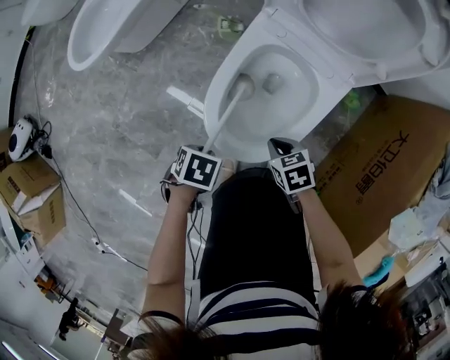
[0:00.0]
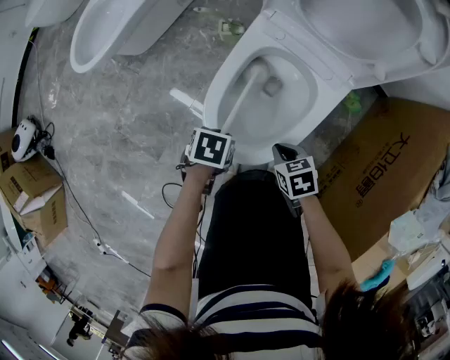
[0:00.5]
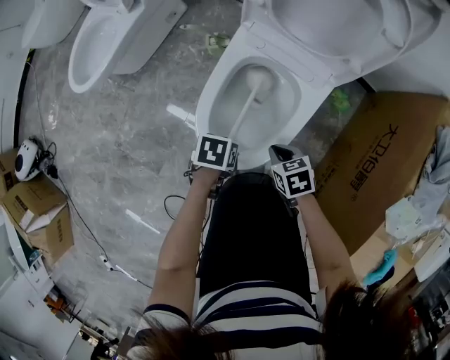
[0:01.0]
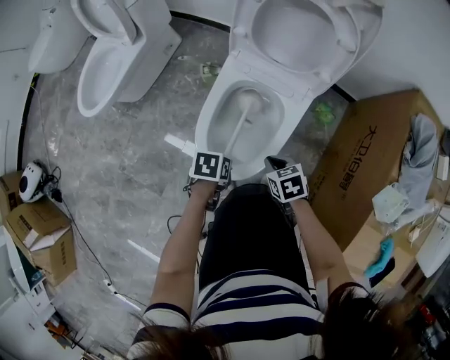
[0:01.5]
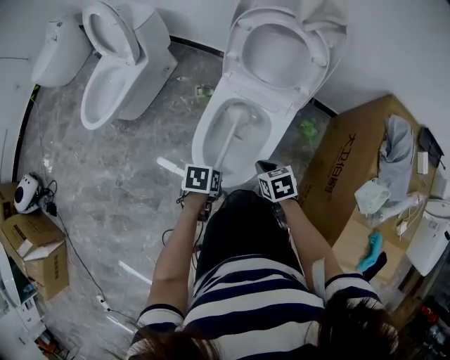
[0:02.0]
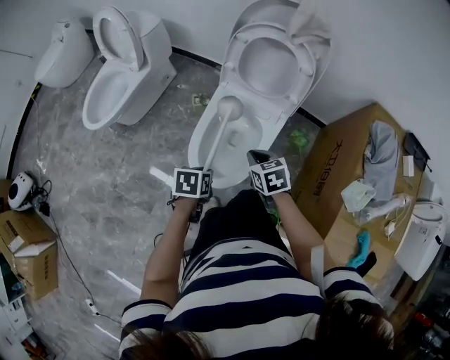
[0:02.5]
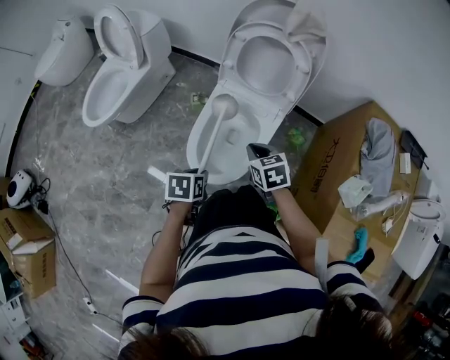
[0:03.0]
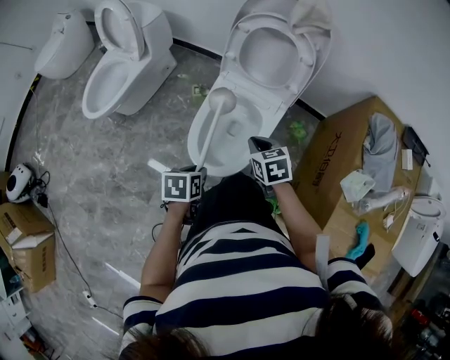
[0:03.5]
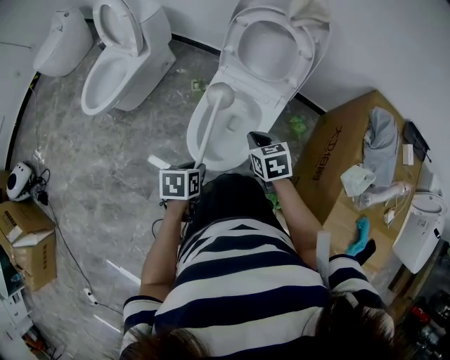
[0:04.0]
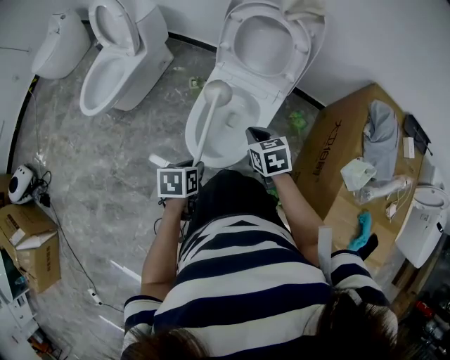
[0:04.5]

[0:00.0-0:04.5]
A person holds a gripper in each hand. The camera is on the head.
0:00.0 to 0:02.0: The right gripper goes roughly 15 cm upward.
0:02.0 to 0:04.5: The right gripper travels upward by approximately 10 cm.

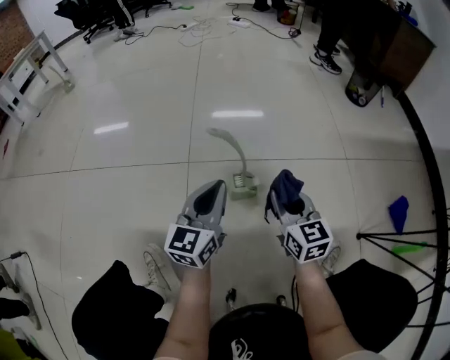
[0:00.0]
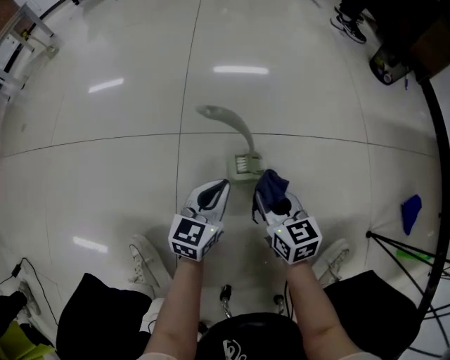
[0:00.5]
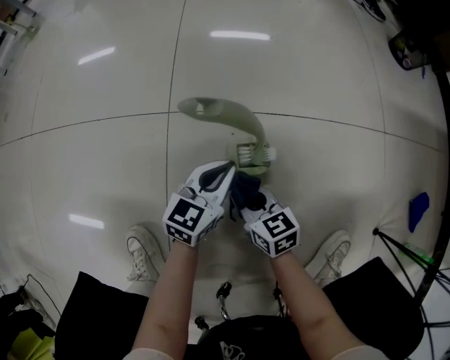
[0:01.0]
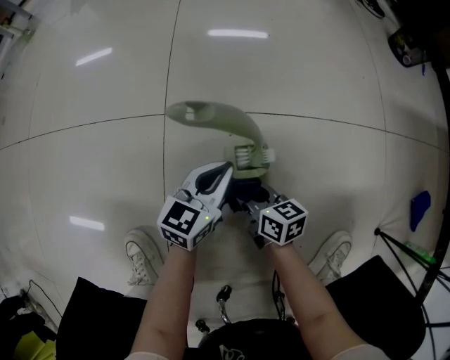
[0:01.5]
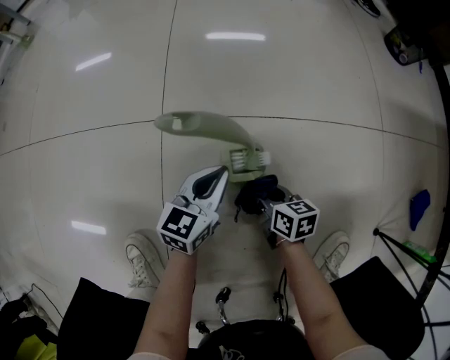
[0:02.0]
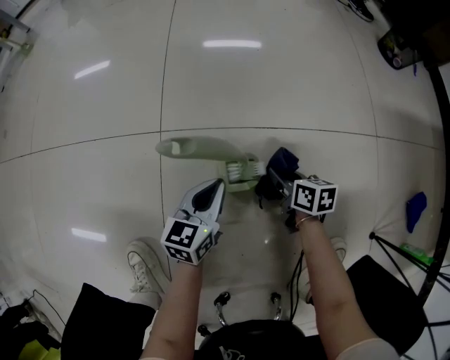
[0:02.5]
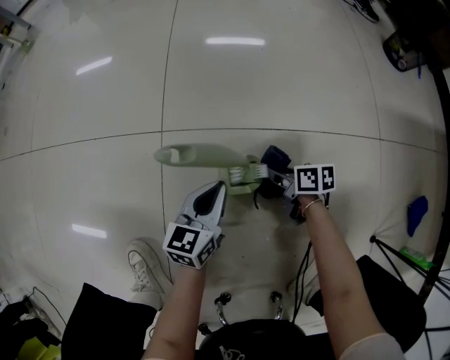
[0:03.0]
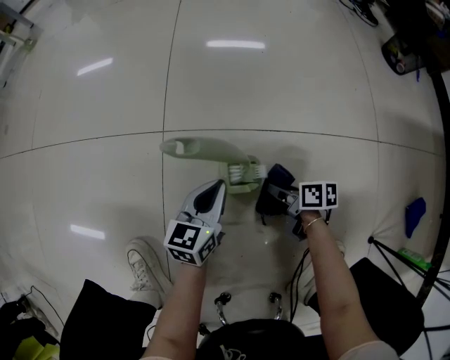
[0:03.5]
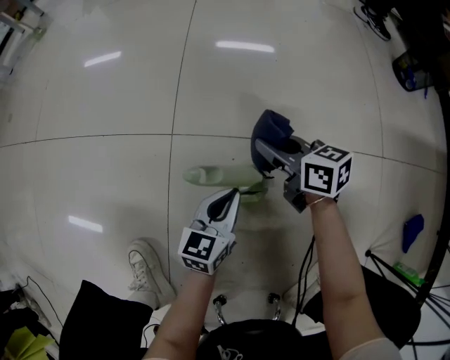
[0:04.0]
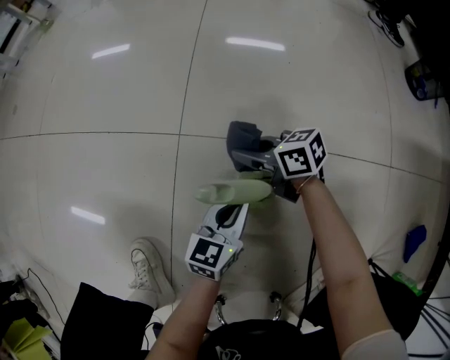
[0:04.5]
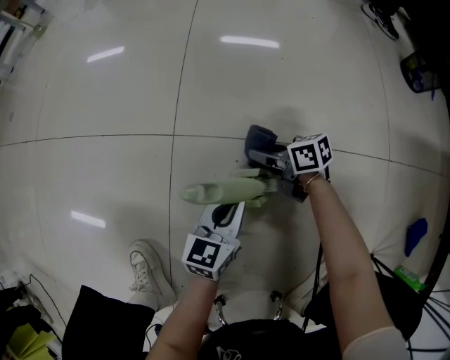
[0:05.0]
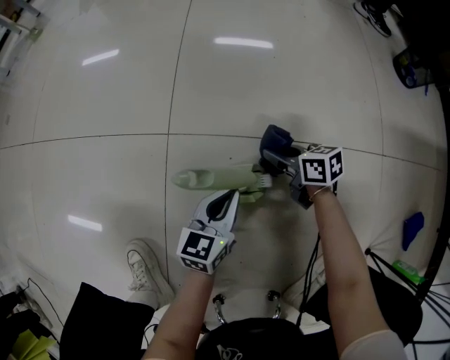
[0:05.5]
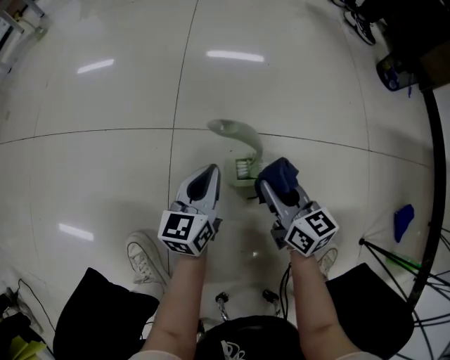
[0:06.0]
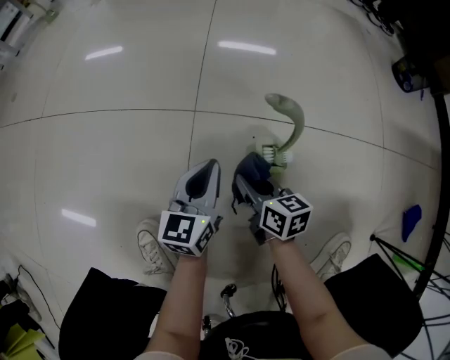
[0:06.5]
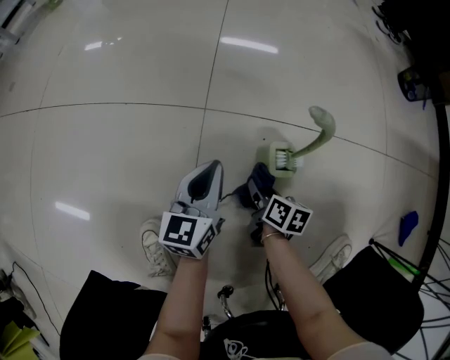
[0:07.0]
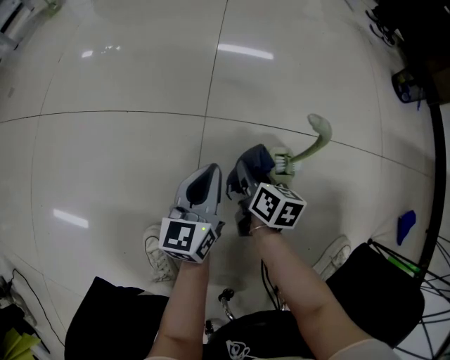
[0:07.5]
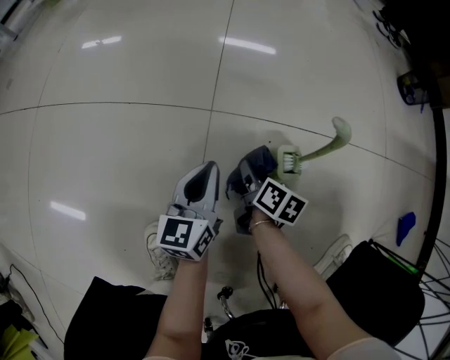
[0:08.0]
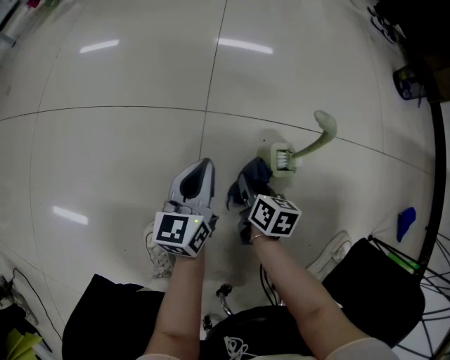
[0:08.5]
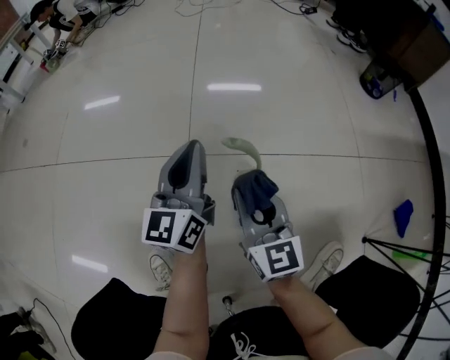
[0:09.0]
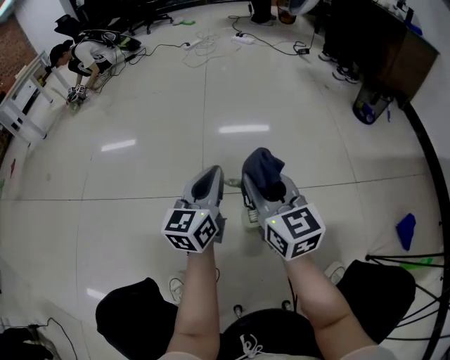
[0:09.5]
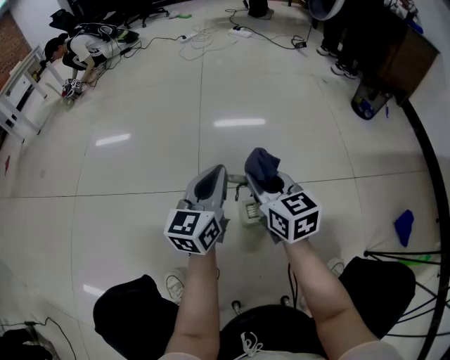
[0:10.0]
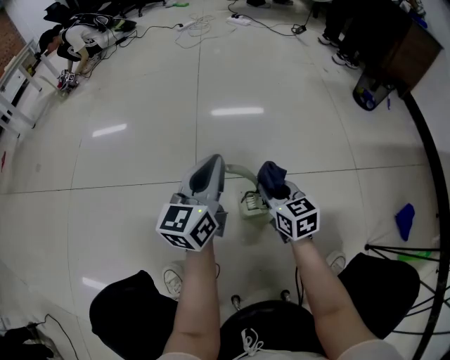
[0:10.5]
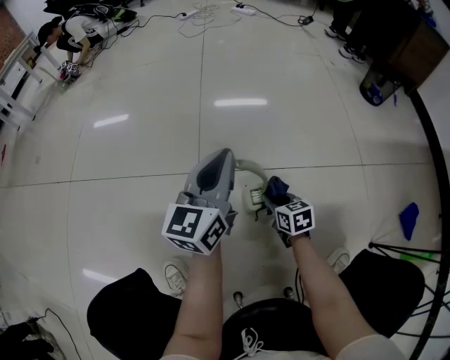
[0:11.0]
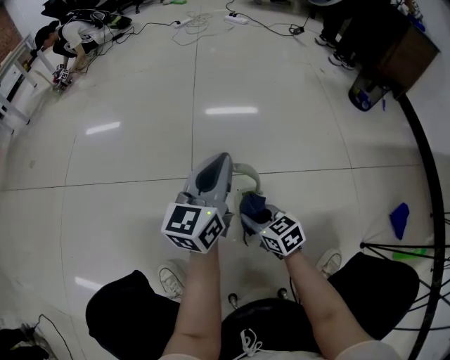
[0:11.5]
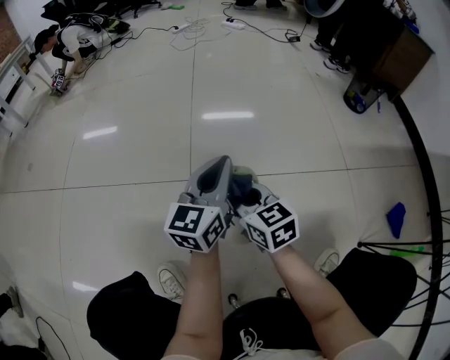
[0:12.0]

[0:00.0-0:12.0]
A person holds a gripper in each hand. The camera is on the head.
0:00.0 to 0:02.0: Both grippers move downward, approximately 25 cm. The right gripper swivels about 40 degrees, while the left gripper turns by some 20 degrees.
0:02.0 to 0:04.0: The right gripper goes forward and backward, roughly 15 cm each way, reversing 2 times, and turns by approximately 20 degrees.
0:04.0 to 0:06.0: The left gripper moves to the left and upward, about 5 cm. The right gripper shifts some 15 cm backward.
0:06.0 to 0:08.0: The right gripper travels to the left and downward by roughly 20 cm, and swivels approximately 40 degrees, while the left gripper goes approximately 15 cm to the left.
0:08.0 to 0:10.0: The right gripper is displaced upward by approximately 30 cm, and rotates around the line of its fingers by roughly 40 degrees, counterclockwise from behind. The left gripper travels upward and to the right by about 25 cm, and swivels approximately 20 degrees.
0:10.0 to 0:12.0: The right gripper travels to the left by roughly 5 cm, and travels downward and back again, some 25 cm each way.

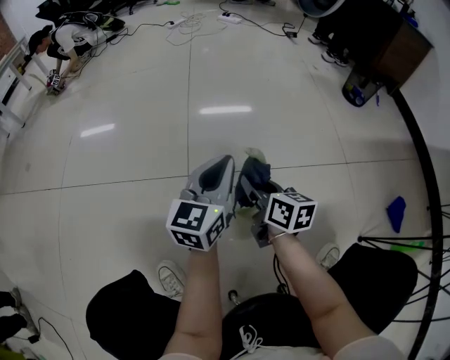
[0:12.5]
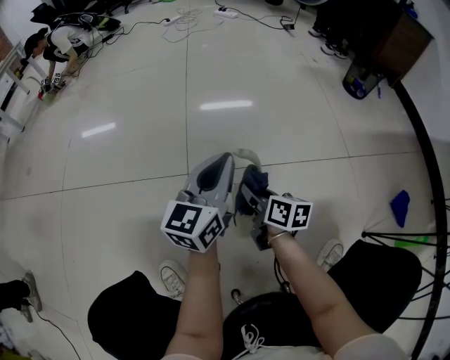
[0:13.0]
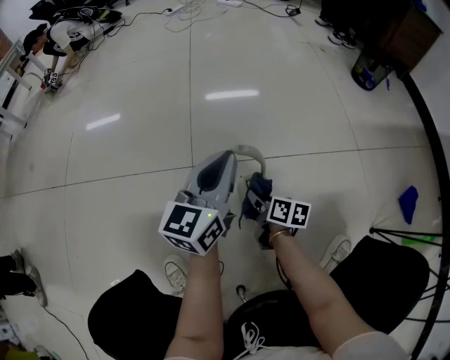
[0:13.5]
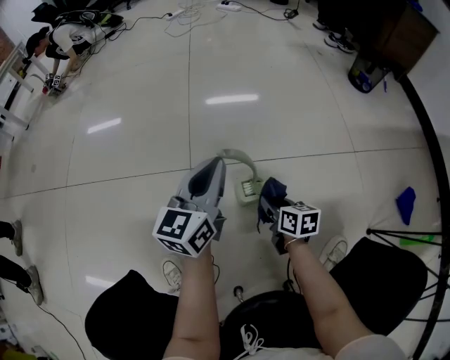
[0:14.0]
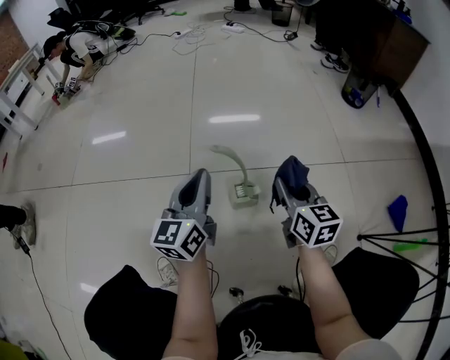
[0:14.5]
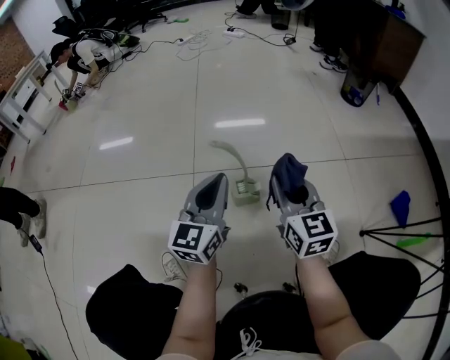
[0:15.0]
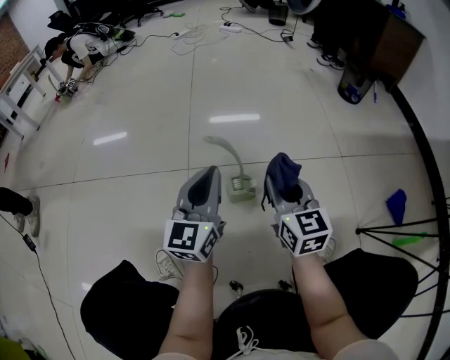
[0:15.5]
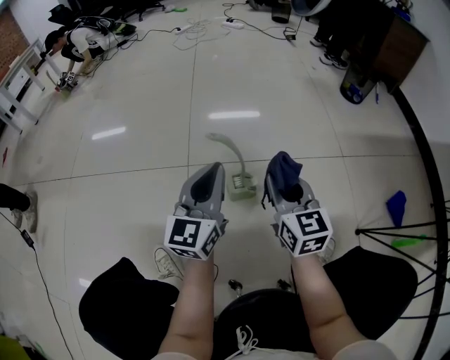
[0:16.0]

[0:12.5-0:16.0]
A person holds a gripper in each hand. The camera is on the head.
0:12.5 to 0:14.5: The right gripper shifts roughly 15 cm to the right and backward, goes downward and returns, some 15 cm each way, and swivels roughly 20 degrees. Meanwhile the left gripper moves backward, approximately 5 cm.
0:14.5 to 0:16.0: The left gripper moves approximately 5 cm; the right gripper ends up some 5 cm from where it was.

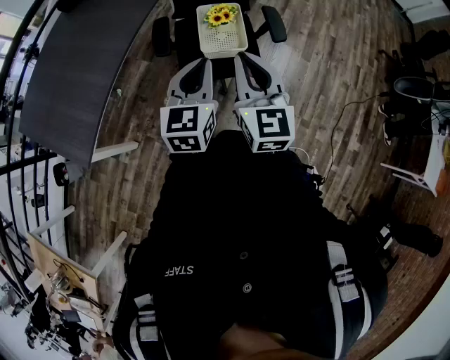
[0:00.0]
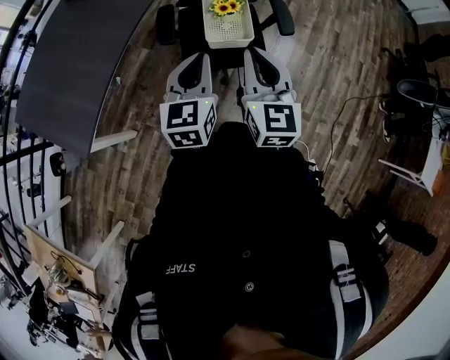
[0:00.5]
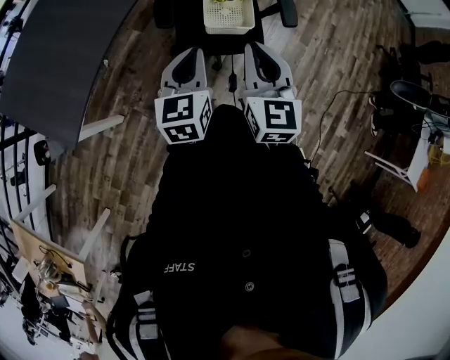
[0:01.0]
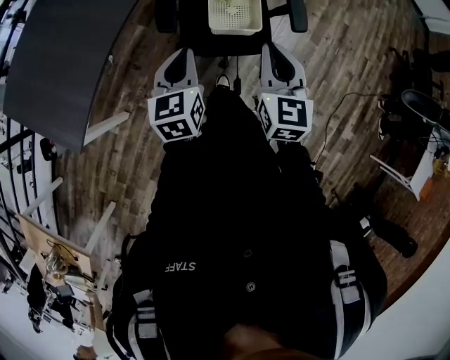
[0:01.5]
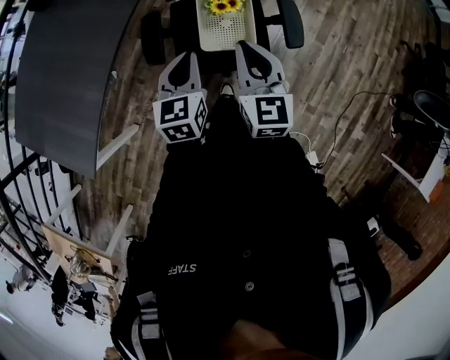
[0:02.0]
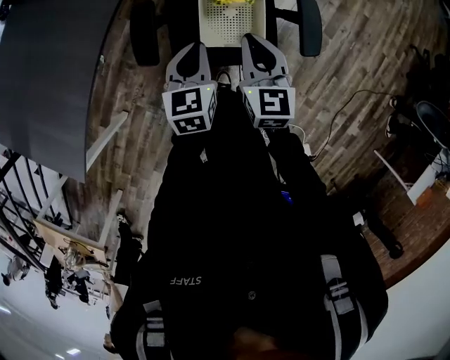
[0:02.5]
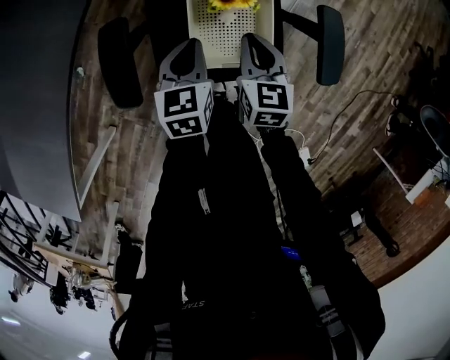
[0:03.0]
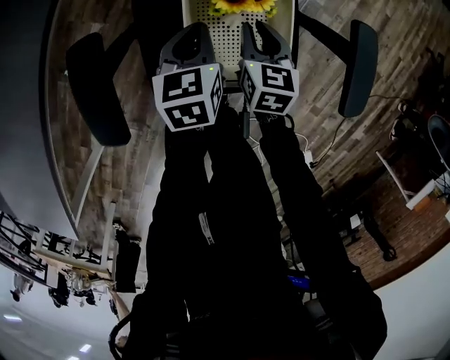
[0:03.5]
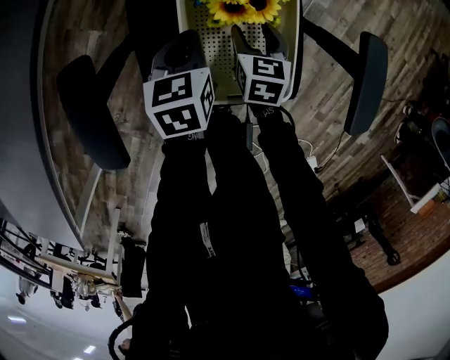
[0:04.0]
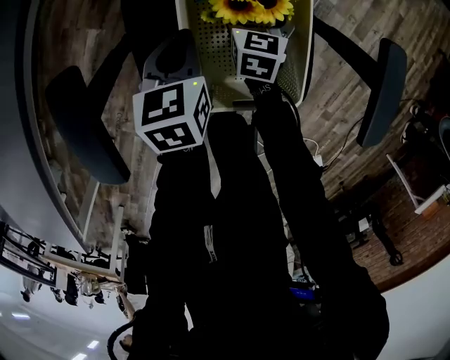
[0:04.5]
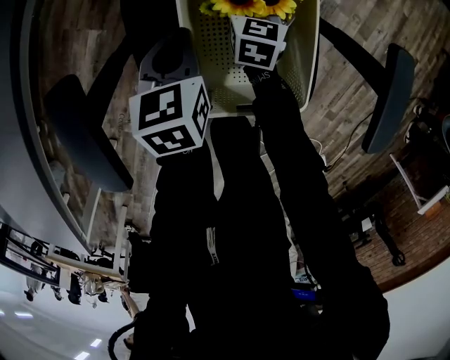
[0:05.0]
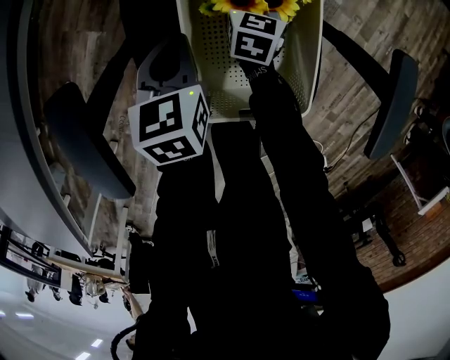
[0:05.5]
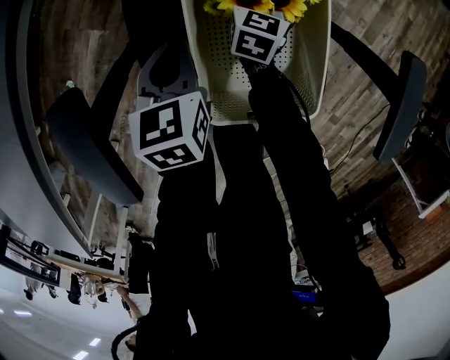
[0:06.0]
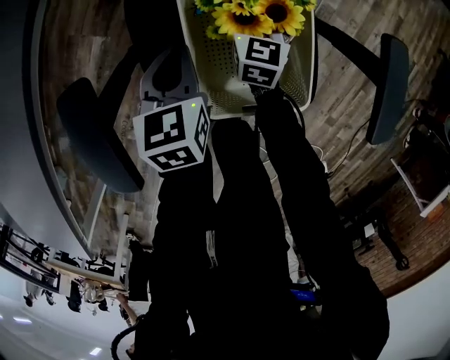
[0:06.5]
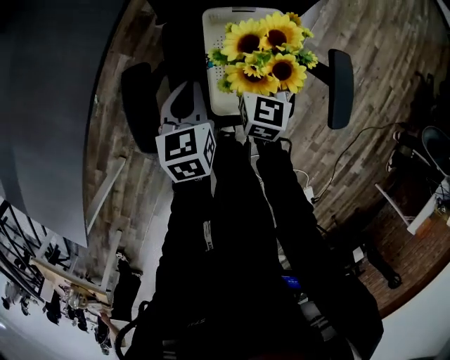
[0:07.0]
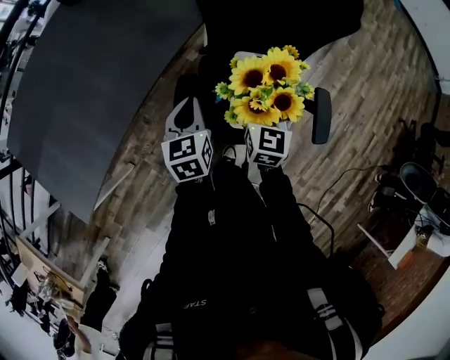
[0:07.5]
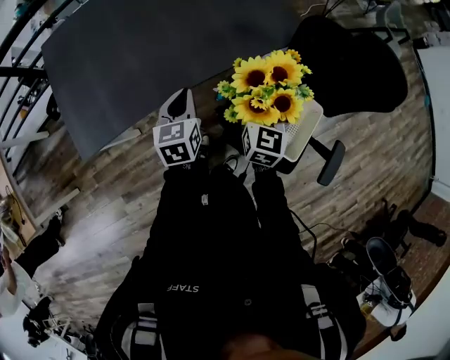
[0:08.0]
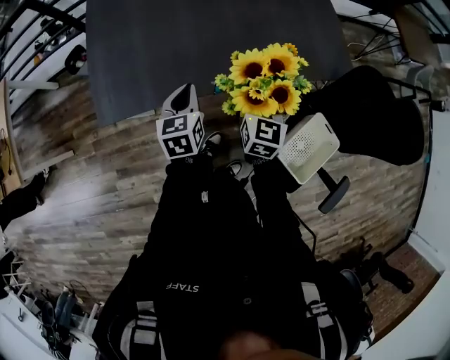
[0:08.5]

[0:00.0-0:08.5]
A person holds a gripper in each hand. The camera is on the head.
0:00.0 to 0:02.0: The two grippers go roughly 25 cm forward and downward.
0:02.0 to 0:04.0: Both grippers move downward and forward, some 50 cm. The left gripper swivels approximately 20 degrees. The right gripper points its fingers some 30 degrees further downward, and opens.
0:04.0 to 0:06.5: The right gripper goes approximately 5 cm forward, and opens up.
0:06.5 to 0:08.5: The pair of grippers is taken some 50 cm. The left gripper rotates approximately 50 degrees, while the right gripper changes its angle by some 50 degrees.
